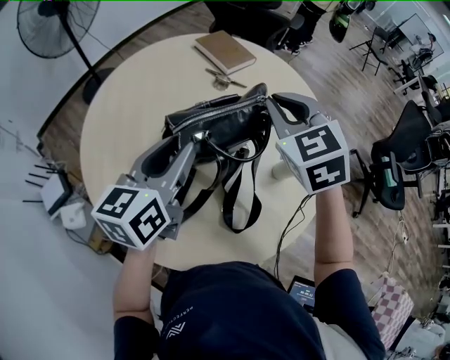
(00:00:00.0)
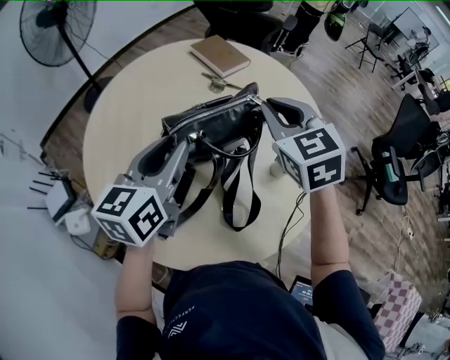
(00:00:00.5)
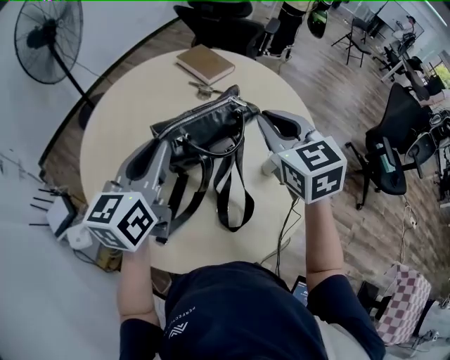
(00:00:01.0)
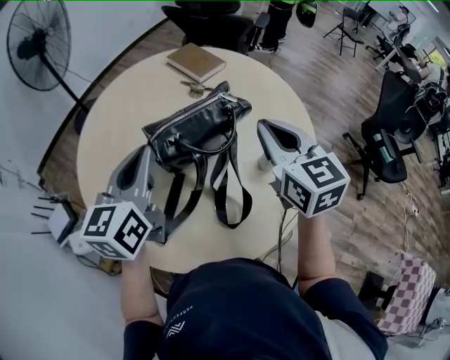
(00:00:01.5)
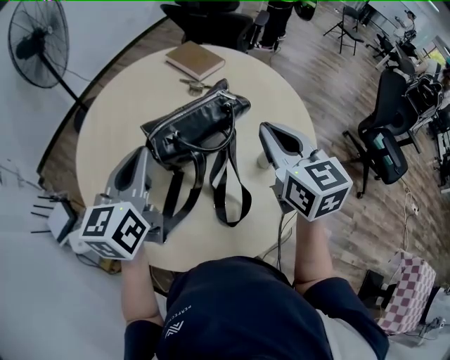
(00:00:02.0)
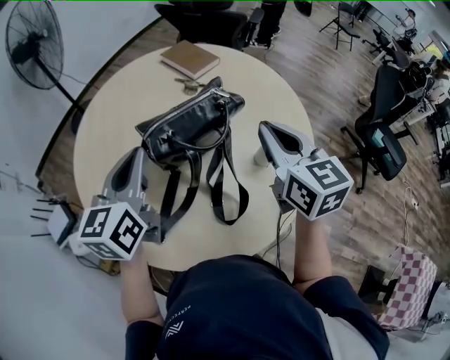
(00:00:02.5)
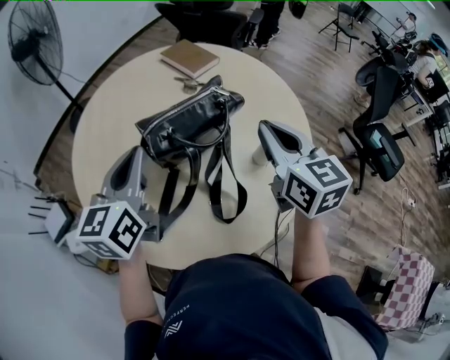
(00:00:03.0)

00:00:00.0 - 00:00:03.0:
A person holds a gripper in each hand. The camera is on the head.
00:00:00.0 - 00:00:01.5: The right gripper is displaced backward and to the right by approximately 10 cm, and changes its angle by some 30 degrees. The left gripper closes its fingers.
00:00:01.5 - 00:00:03.0: There are only small adjustments of the grippers.

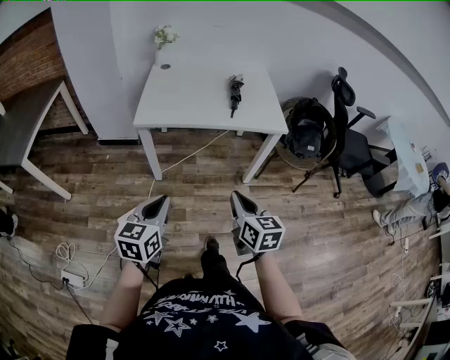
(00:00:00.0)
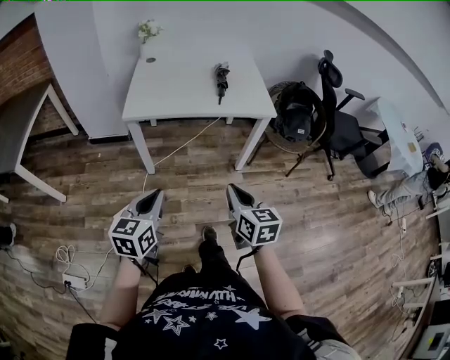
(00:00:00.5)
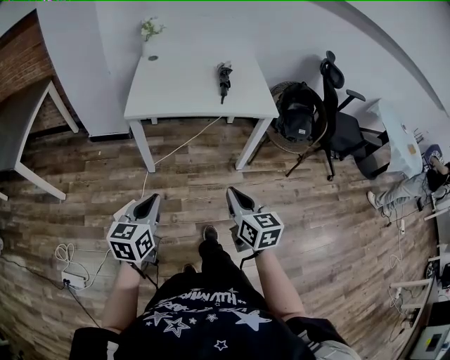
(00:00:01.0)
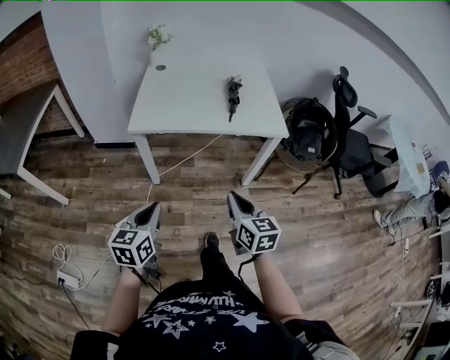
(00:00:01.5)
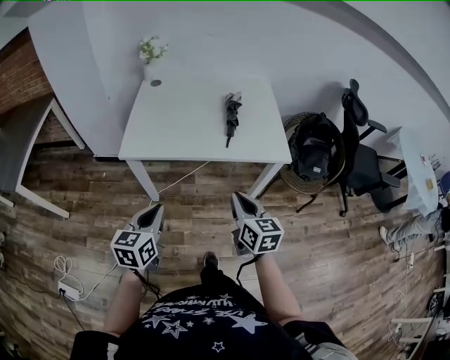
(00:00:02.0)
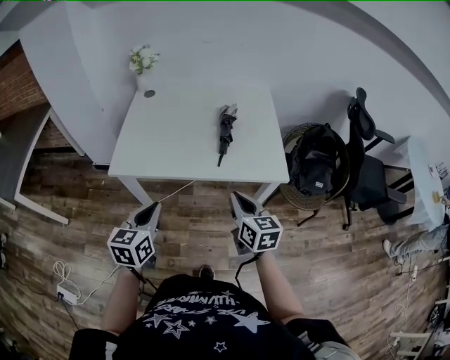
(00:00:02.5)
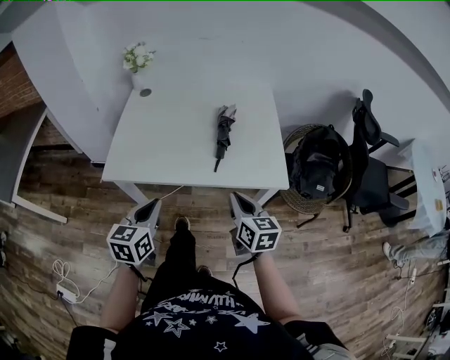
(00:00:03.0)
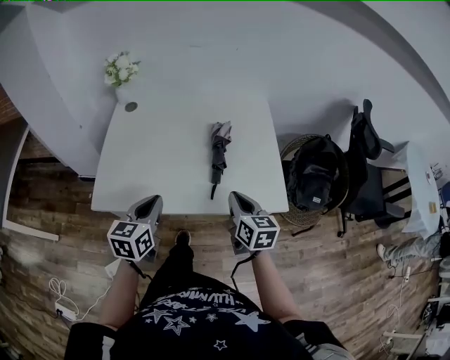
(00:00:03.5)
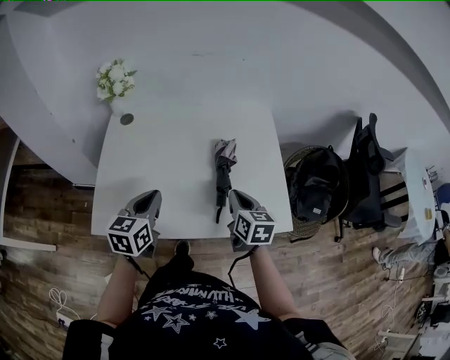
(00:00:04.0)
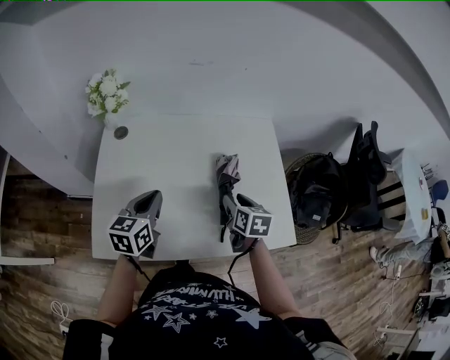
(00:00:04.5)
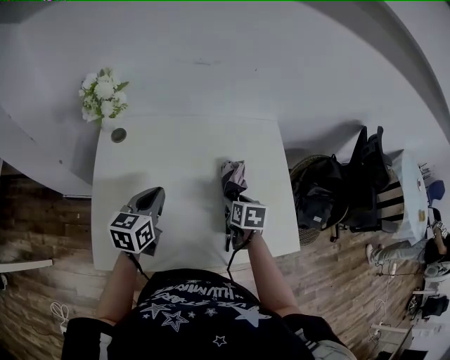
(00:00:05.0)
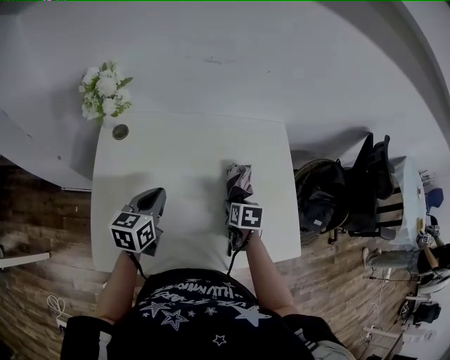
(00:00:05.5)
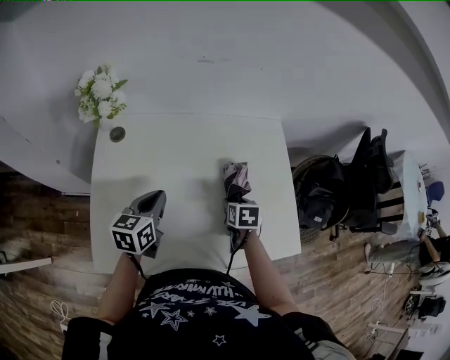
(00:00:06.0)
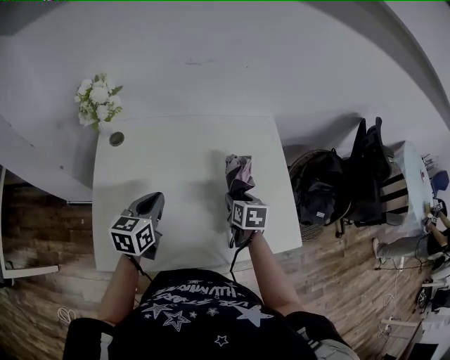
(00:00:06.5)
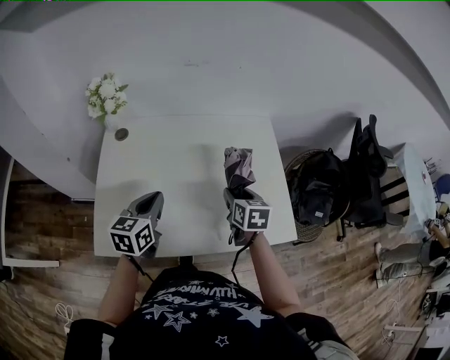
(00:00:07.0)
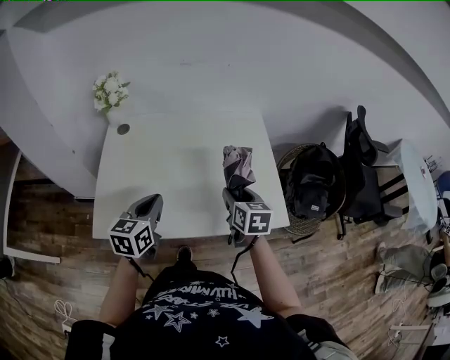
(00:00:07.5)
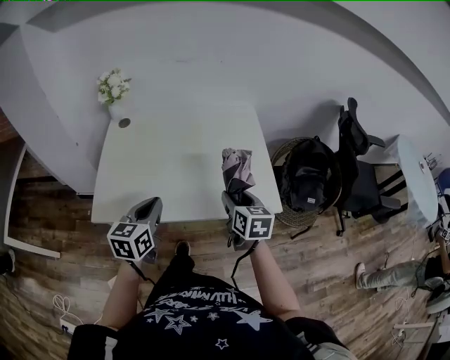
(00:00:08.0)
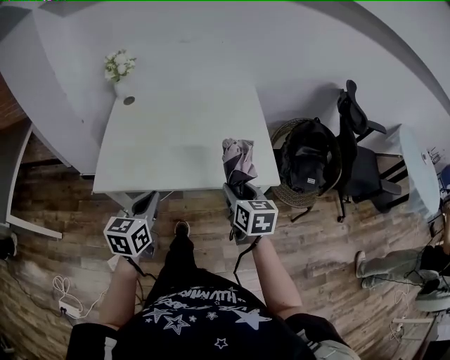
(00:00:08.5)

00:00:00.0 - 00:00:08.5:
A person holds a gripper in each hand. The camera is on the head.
00:00:00.0 - 00:00:02.0: Both grippers travel together forward, about 20 cm.
00:00:02.0 - 00:00:04.0: Both grippers move forward, roughly 35 cm.
00:00:04.0 - 00:00:06.5: The right gripper heads forward and downward, covering about 15 cm, and opens. The left gripper is displaced forward by roughly 10 cm.
00:00:06.5 - 00:00:08.5: The left gripper is displaced backward by about 30 cm. Meanwhile the right gripper goes approximately 30 cm backward and upward, and changes its angle by some 20 degrees.

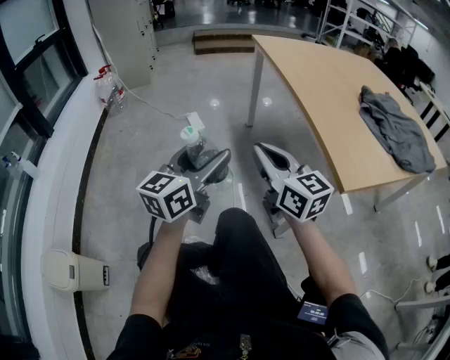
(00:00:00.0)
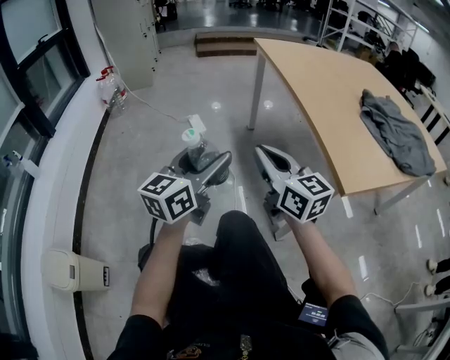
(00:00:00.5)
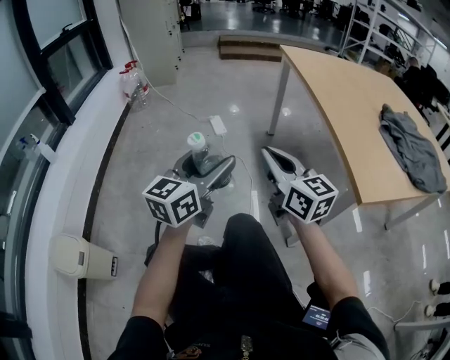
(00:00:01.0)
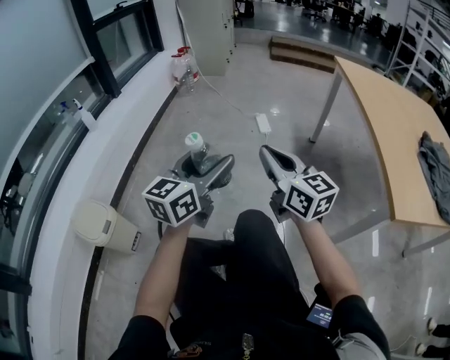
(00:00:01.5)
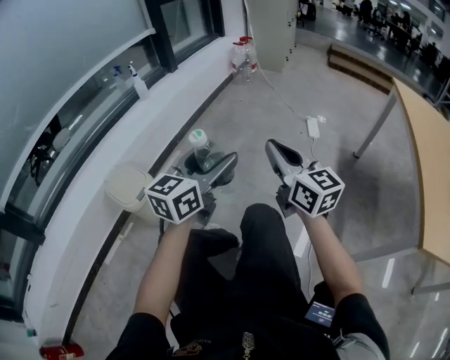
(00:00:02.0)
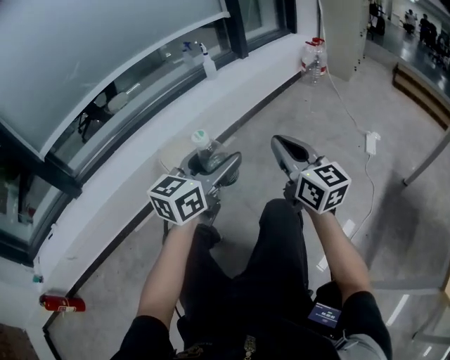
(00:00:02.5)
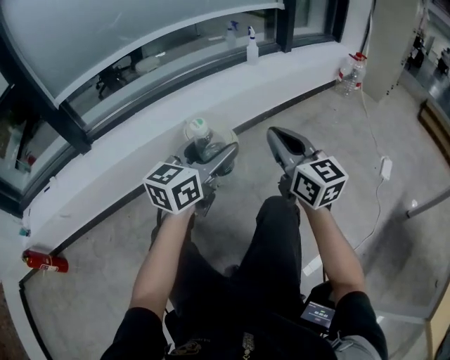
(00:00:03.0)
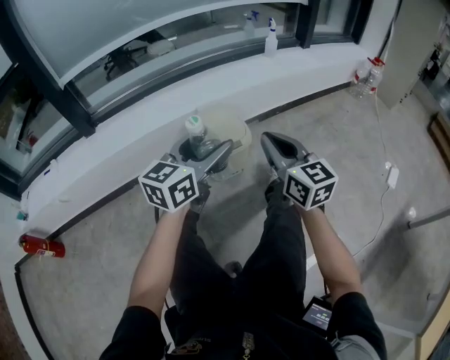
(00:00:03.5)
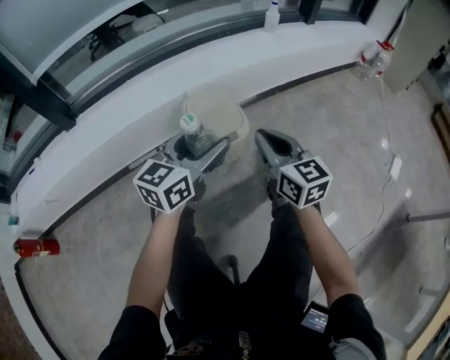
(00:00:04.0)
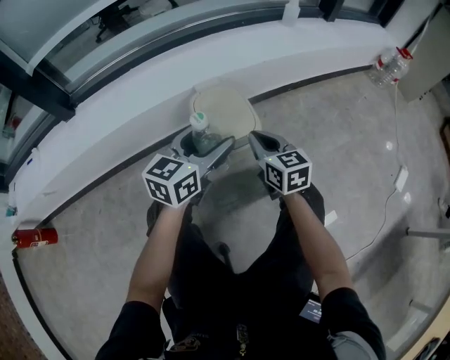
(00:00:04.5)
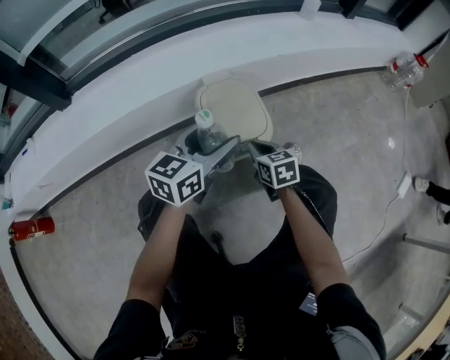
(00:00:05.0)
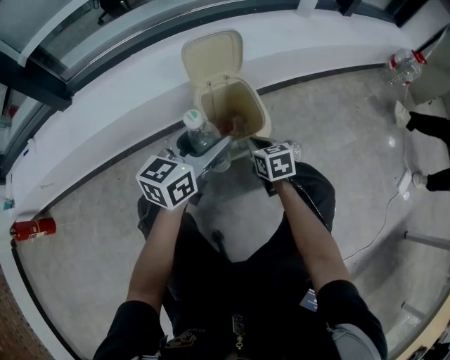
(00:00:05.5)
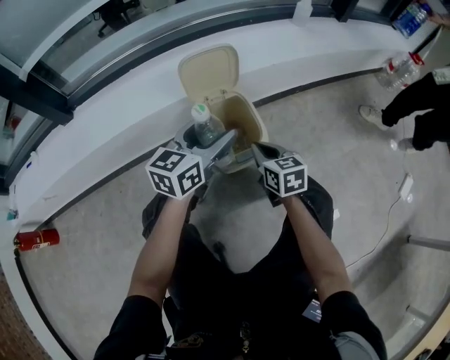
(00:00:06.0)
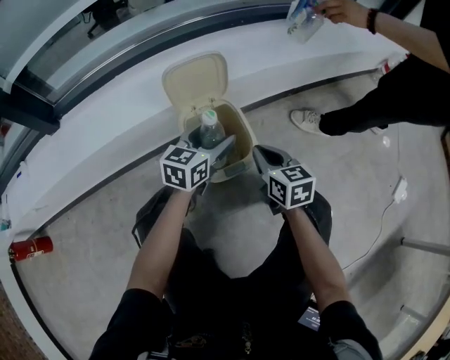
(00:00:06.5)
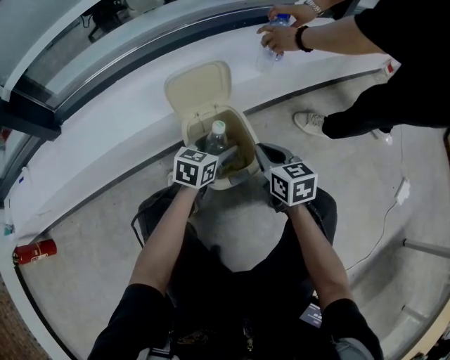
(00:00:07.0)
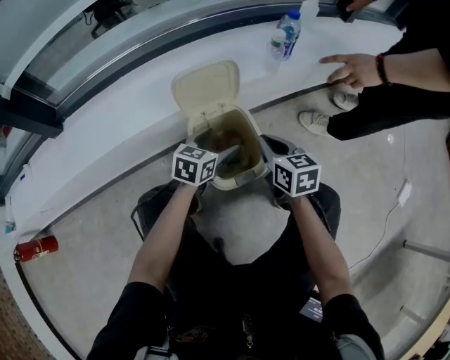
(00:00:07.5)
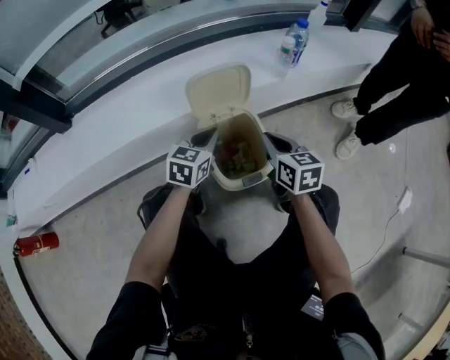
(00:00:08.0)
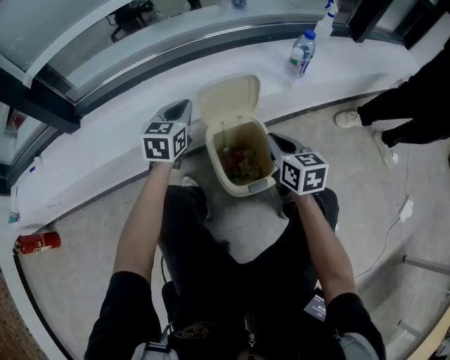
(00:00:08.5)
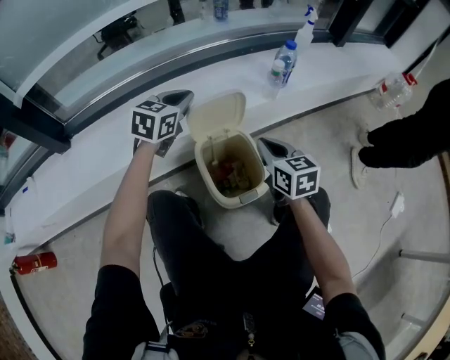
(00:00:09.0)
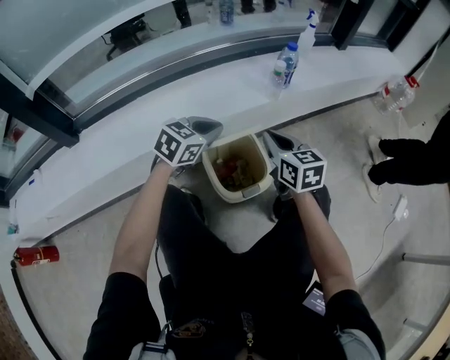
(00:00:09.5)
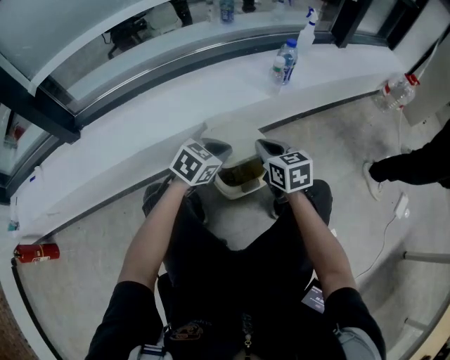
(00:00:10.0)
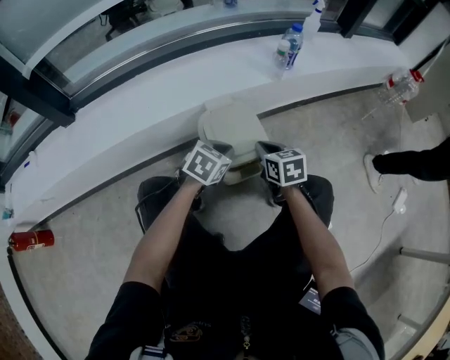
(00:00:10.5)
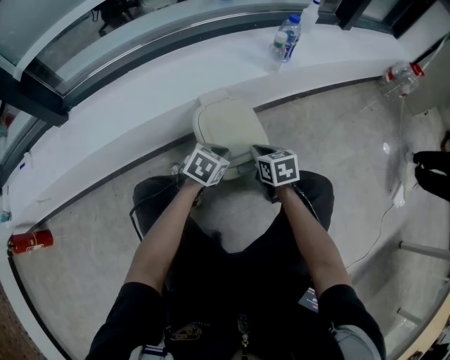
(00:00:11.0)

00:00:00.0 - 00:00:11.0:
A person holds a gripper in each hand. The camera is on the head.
00:00:00.0 - 00:00:02.0: The right gripper changes place by some 30 cm, and rotates approximately 30 degrees. Meanwhile the left gripper changes place by some 35 cm, and rotates about 40 degrees.
00:00:02.0 - 00:00:03.5: The left gripper shifts by approximately 40 cm, and swivels about 30 degrees, while the right gripper shifts by some 40 cm, and rotates some 40 degrees.
00:00:03.5 - 00:00:05.5: The left gripper heads forward and downward, covering about 20 cm. Meanwhile the right gripper moves downward and forward, approximately 35 cm, and tilts its fingers about 40 degrees downward.
00:00:05.5 - 00:00:07.5: The right gripper goes about 15 cm forward and upward. Meanwhile the left gripper travels downward and forward by some 20 cm, and changes its angle by some 20 degrees.
00:00:07.5 - 00:00:09.0: The right gripper moves upward, roughly 5 cm; the left gripper travels upward, forward and to the left by some 25 cm, and closes its fingers.
00:00:09.0 - 00:00:11.0: The left gripper travels downward, backward and to the right by some 30 cm, and rotates roughly 30 degrees. Meanwhile the right gripper is displaced downward and backward by some 15 cm.

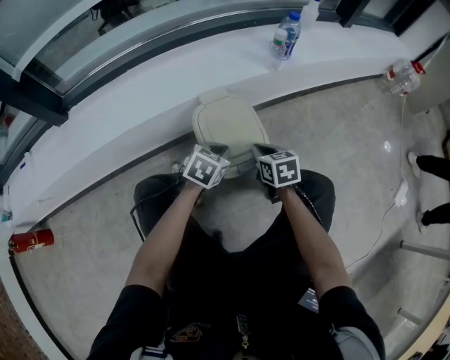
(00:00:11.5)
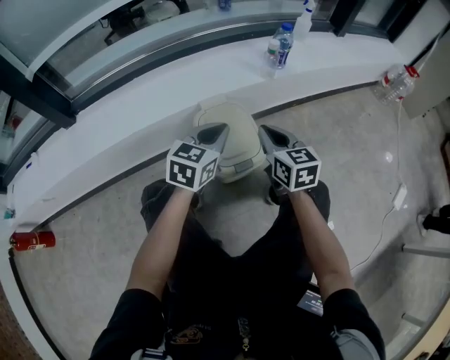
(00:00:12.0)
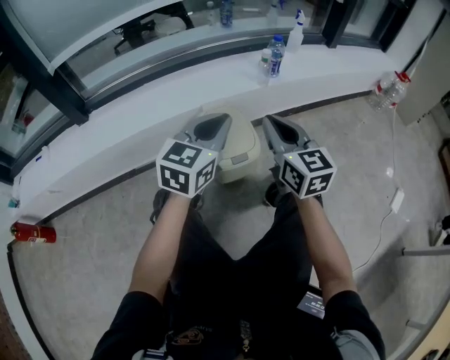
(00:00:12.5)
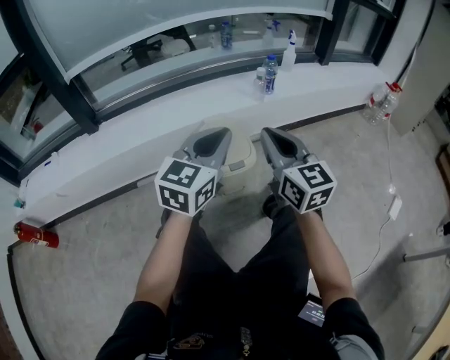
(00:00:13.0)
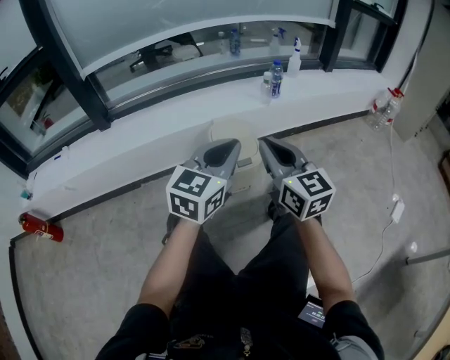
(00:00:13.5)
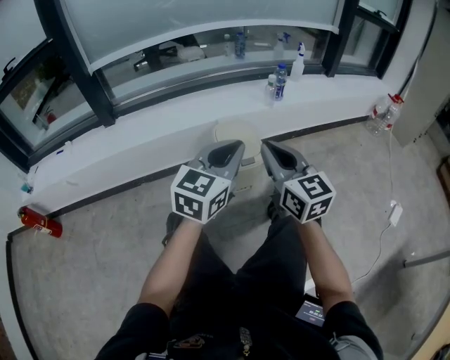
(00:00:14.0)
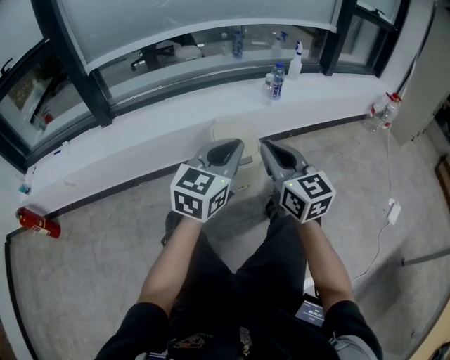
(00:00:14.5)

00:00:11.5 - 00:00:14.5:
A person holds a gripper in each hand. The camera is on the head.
00:00:11.5 - 00:00:13.0: Both grippers travel together upward and backward, approximately 35 cm. The left gripper tips its fingers upward by approximately 40 degrees. The right gripper angles its fingers upward, by approximately 40 degrees.
00:00:13.0 - 00:00:14.5: The grippers both shift backward by some 10 cm.
